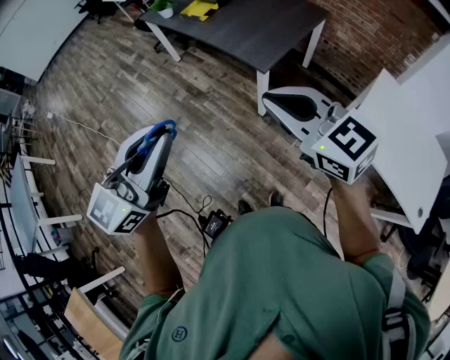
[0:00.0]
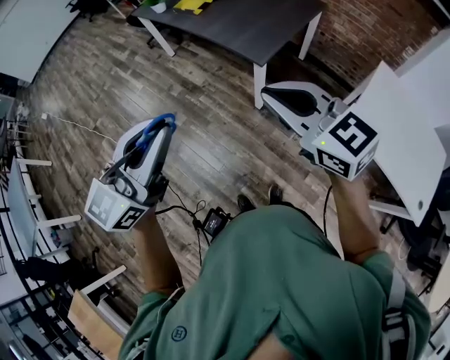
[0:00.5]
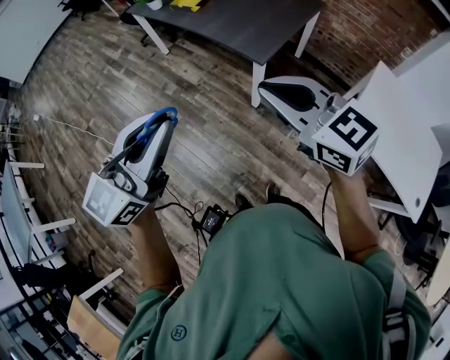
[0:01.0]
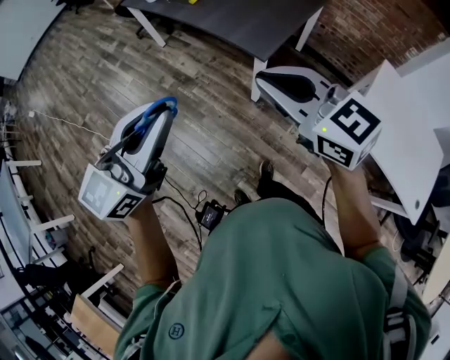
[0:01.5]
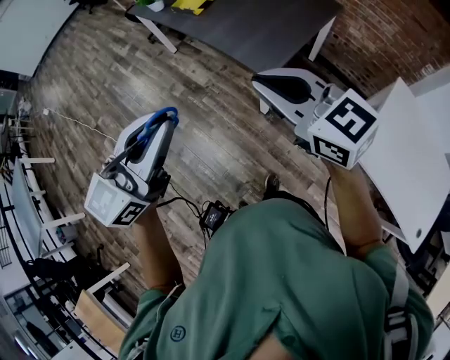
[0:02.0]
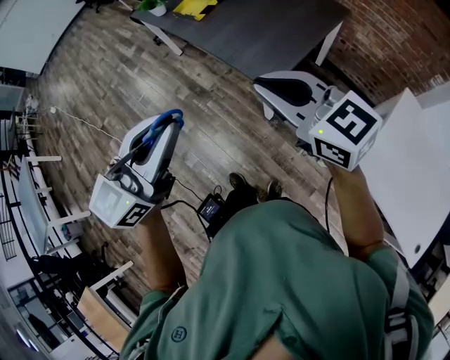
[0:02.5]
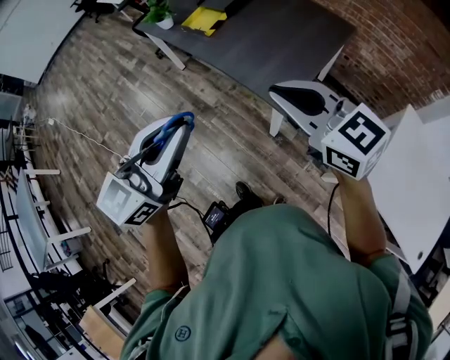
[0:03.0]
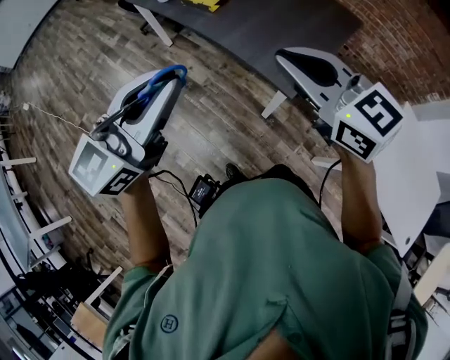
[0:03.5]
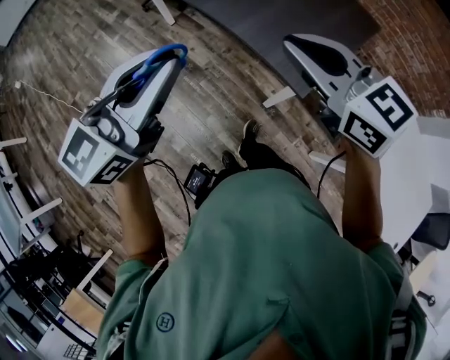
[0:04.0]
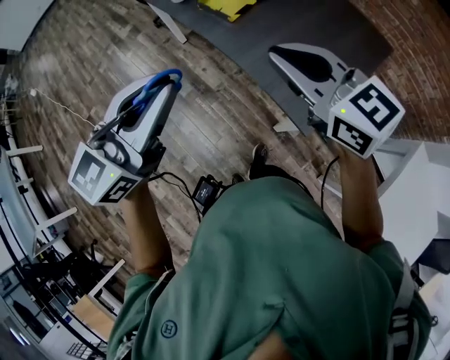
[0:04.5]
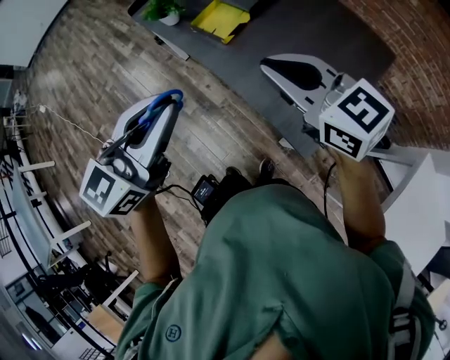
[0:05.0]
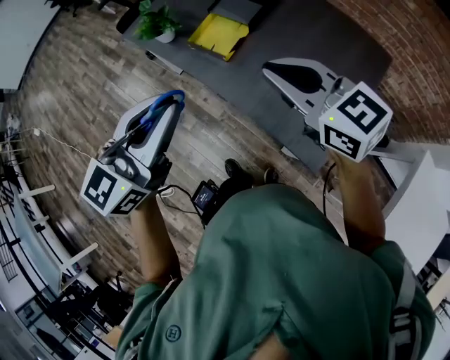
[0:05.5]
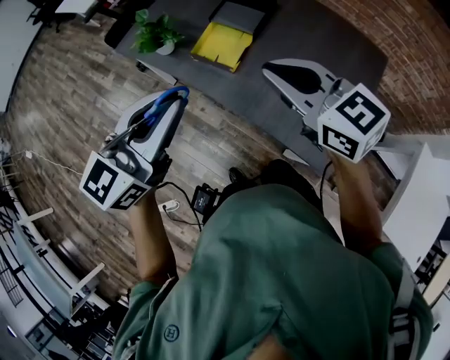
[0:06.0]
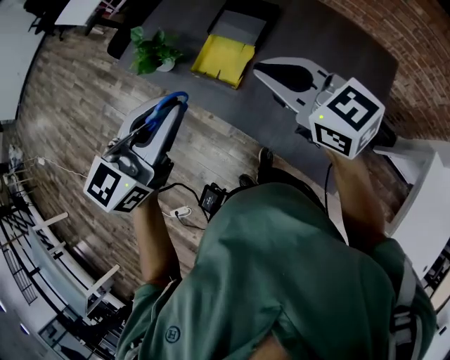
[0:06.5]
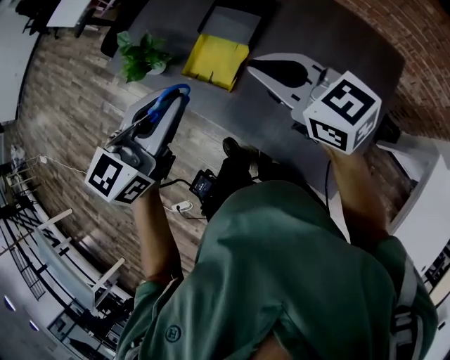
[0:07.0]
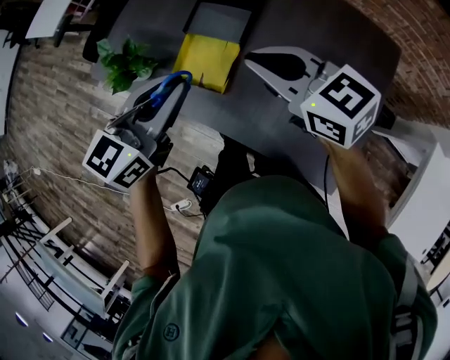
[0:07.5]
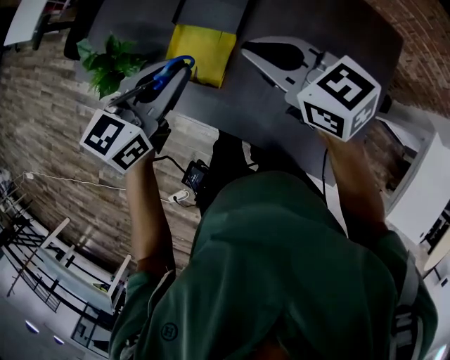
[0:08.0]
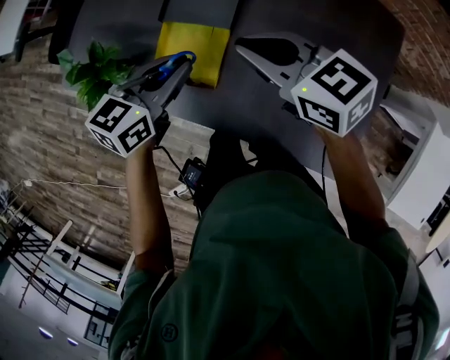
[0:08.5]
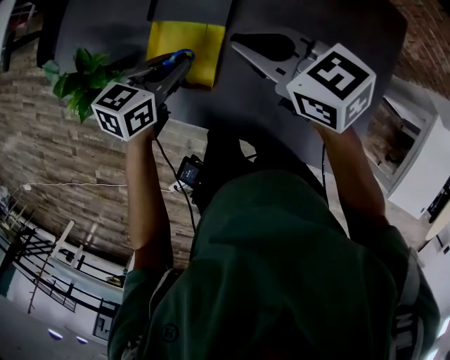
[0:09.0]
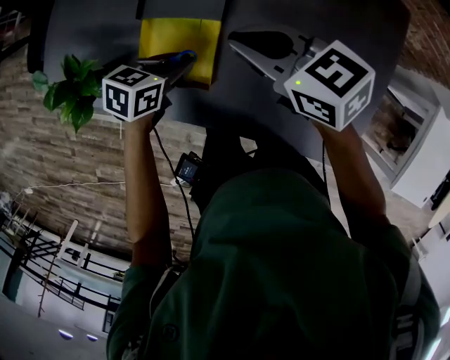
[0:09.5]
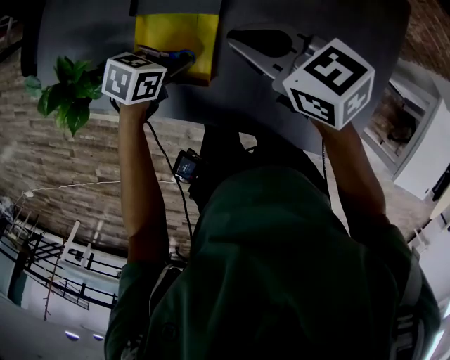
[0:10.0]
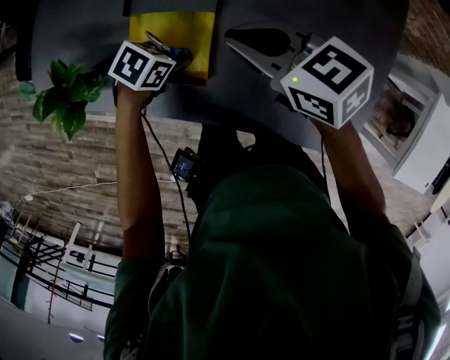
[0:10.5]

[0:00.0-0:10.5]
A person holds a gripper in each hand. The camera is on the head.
0:00.0 to 0:02.0: The grippers both shift forward by roughly 15 cm.
0:02.0 to 0:04.0: Both grippers travel together forward and to the left, approximately 25 cm.
0:04.0 to 0:06.5: Both grippers move forward, about 40 cm.
0:06.5 to 0:08.5: The left gripper is displaced downward and forward by approximately 30 cm, and swivels about 30 degrees. Meanwhile the right gripper is displaced forward and downward by some 20 cm.
0:08.5 to 0:10.5: The left gripper heads downward, covering some 20 cm, and tilts its fingers some 30 degrees downward. The right gripper goes roughly 10 cm downward.

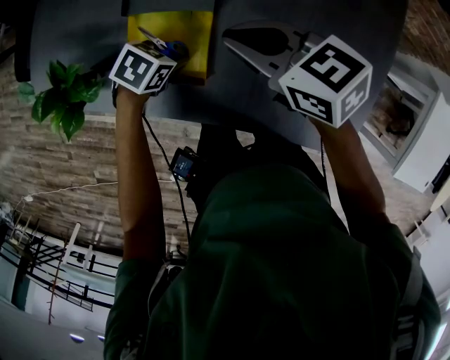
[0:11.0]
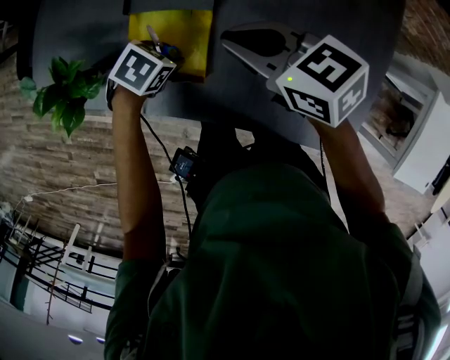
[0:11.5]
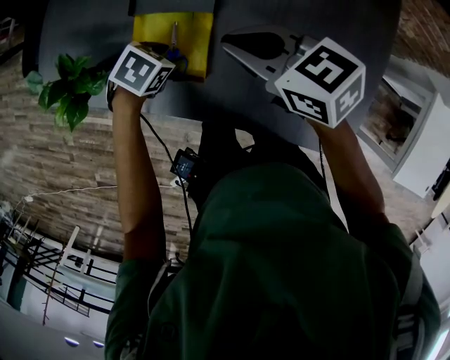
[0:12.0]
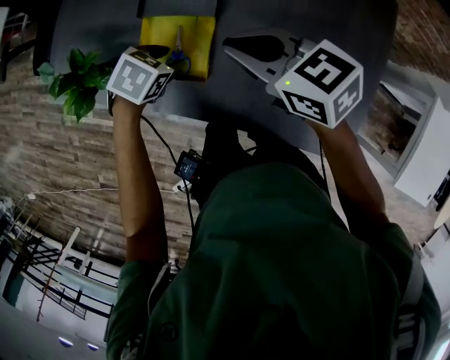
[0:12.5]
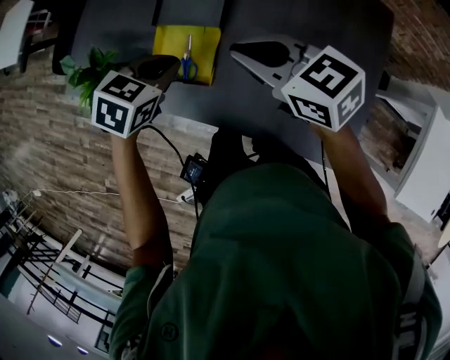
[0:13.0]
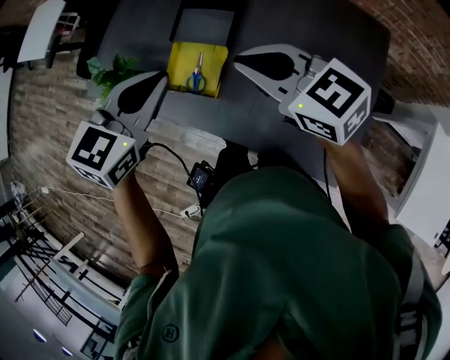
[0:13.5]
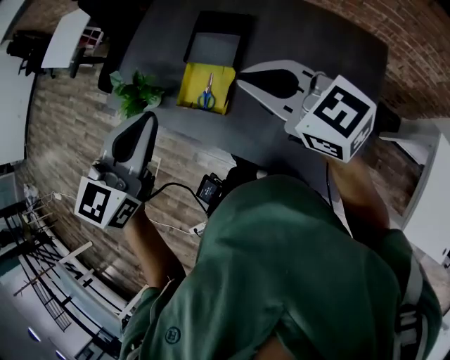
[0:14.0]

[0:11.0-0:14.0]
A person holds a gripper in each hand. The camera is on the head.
0:11.0 to 0:12.5: The right gripper moves about 5 cm. Meanwhile the left gripper heads upward, covering approximately 5 cm.
0:12.5 to 0:14.0: The right gripper goes about 20 cm upward, and swivels approximately 20 degrees, while the left gripper moves upward, about 35 cm, tilts its fingers about 50 degrees upward, and closes up.

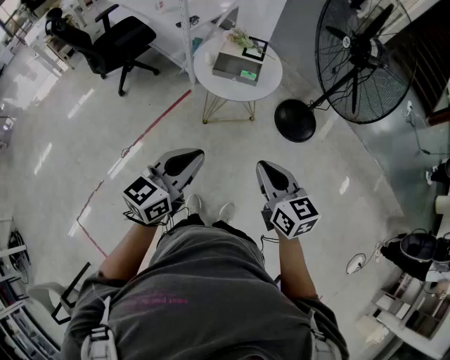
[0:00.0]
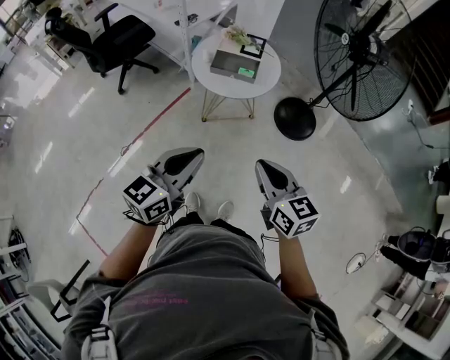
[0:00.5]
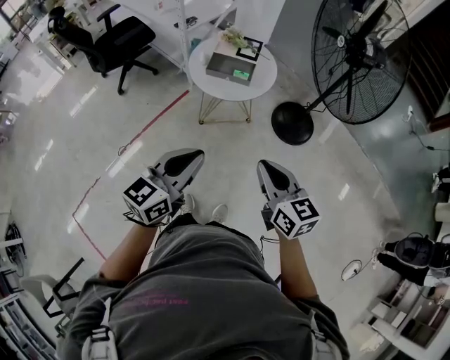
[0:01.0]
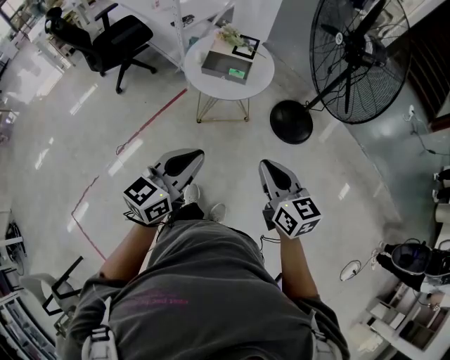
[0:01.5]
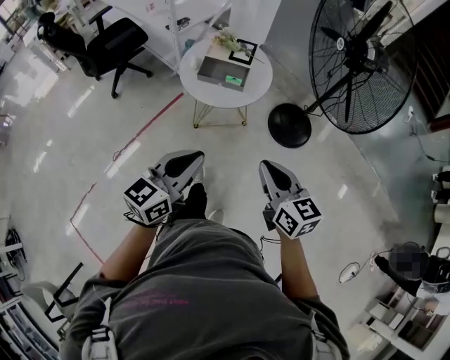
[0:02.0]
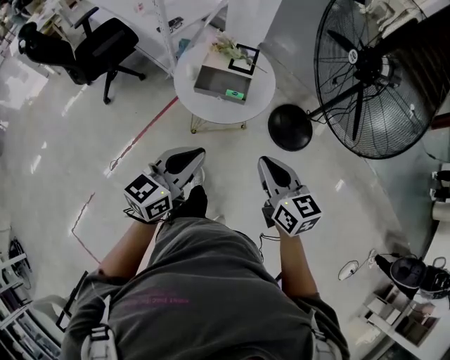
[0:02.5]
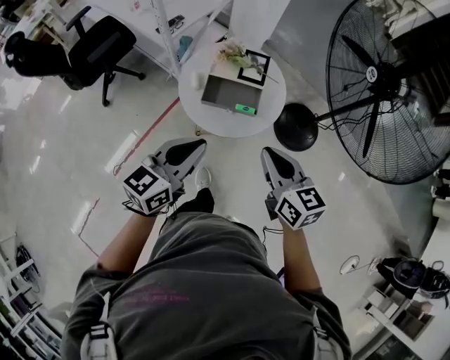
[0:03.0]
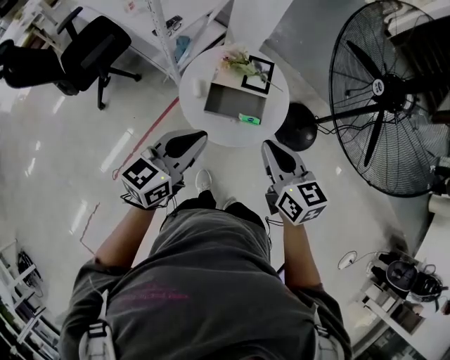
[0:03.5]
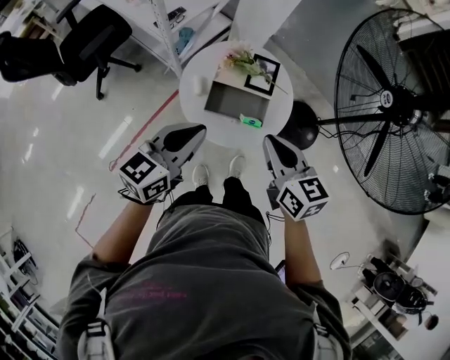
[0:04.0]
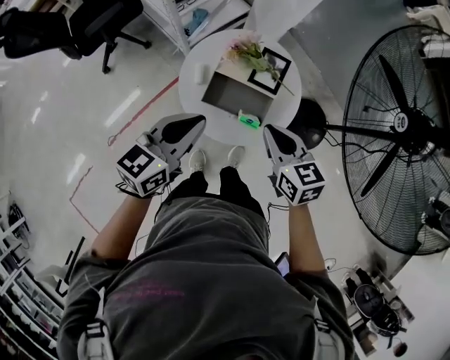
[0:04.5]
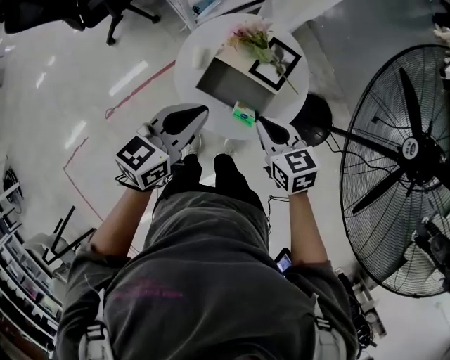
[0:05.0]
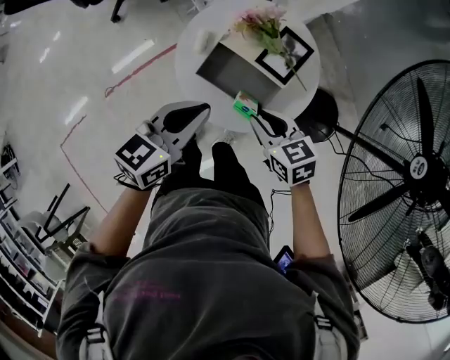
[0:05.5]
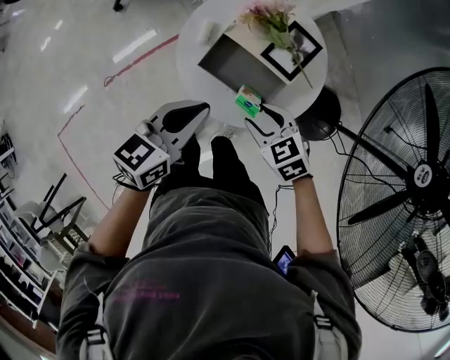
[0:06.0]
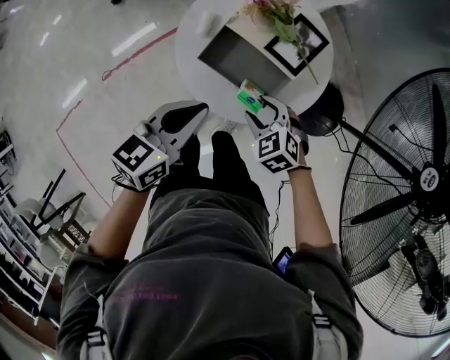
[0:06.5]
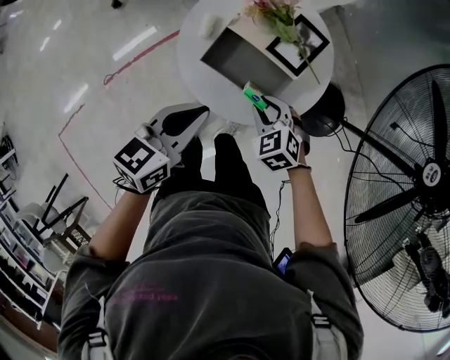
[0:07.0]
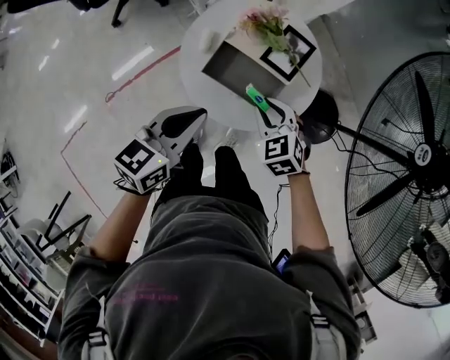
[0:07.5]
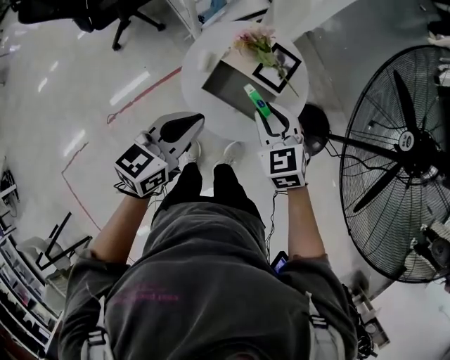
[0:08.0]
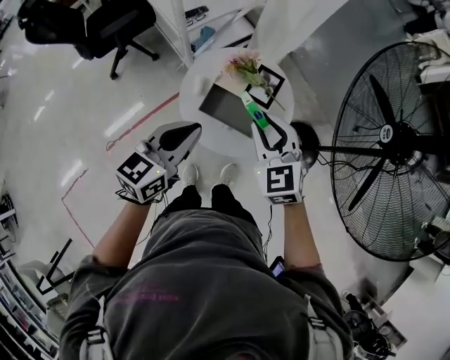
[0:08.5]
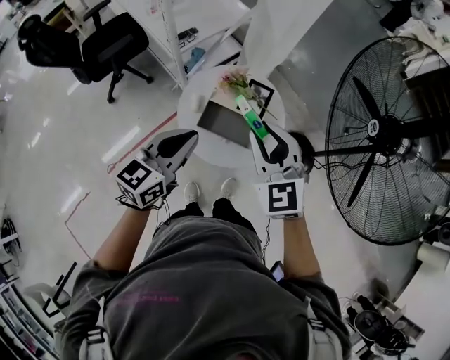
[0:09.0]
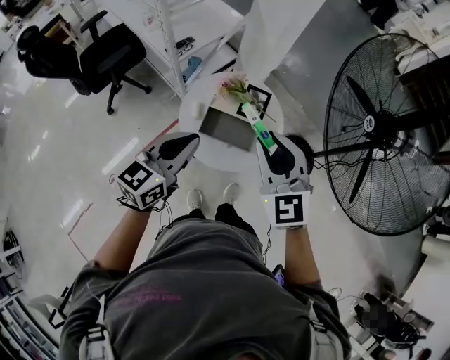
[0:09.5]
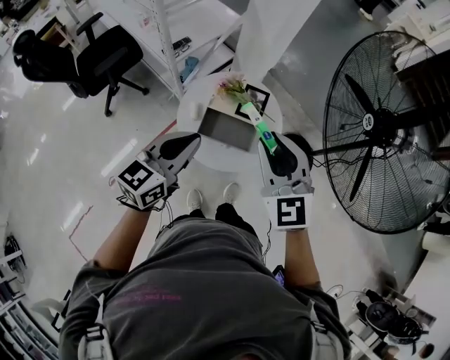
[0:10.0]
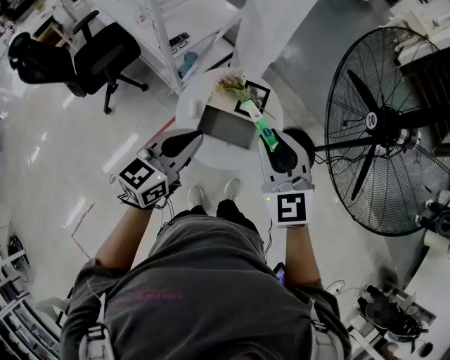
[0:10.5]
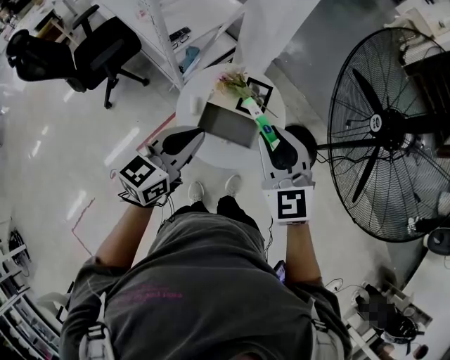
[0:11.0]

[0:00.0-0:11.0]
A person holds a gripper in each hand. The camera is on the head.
0:00.0 to 0:02.0: The two grippers go approximately 10 cm to the right and forward.
0:02.0 to 0:03.5: The grippers both shift forward and to the left by about 35 cm.
0:03.5 to 0:05.5: The right gripper shifts some 20 cm downward, and rotates roughly 40 degrees. Meanwhile the left gripper shifts approximately 15 cm downward, and changes its angle by roughly 20 degrees.
0:05.5 to 0:07.5: The right gripper reaches approximately 10 cm downward, then returns, turns by approximately 30 degrees, and opens, then closes again.
0:07.5 to 0:09.0: The left gripper shifts about 15 cm upward, while the right gripper goes approximately 30 cm upward, and turns by roughly 30 degrees.
0:09.0 to 0:11.0: The grippers stay close to where they were, moving slightly.

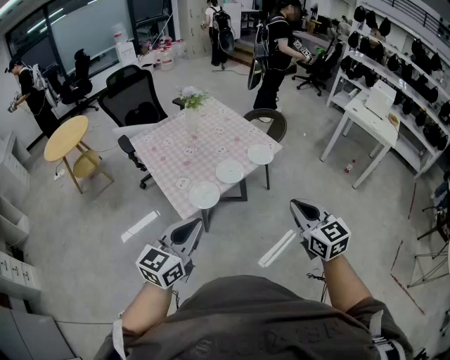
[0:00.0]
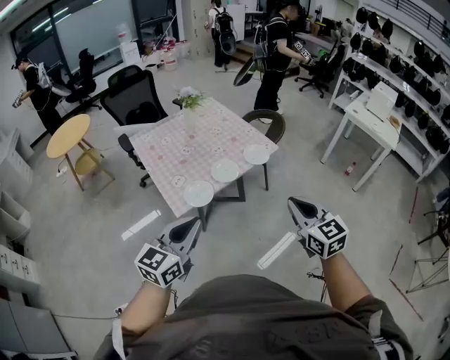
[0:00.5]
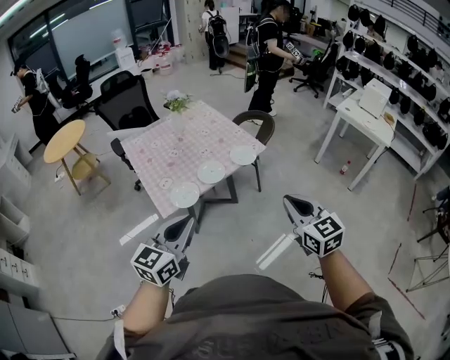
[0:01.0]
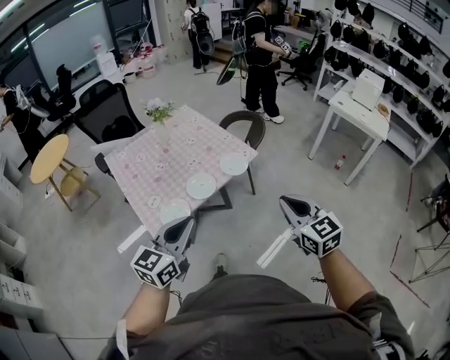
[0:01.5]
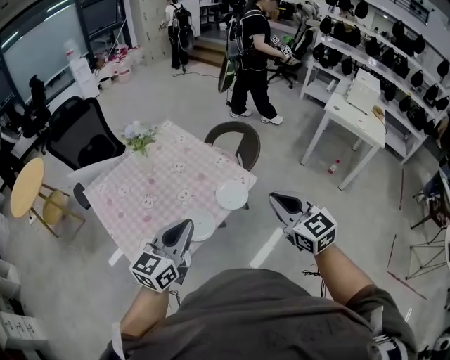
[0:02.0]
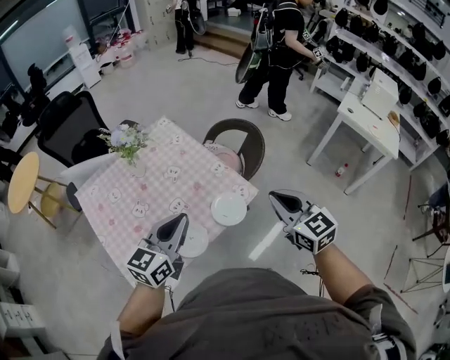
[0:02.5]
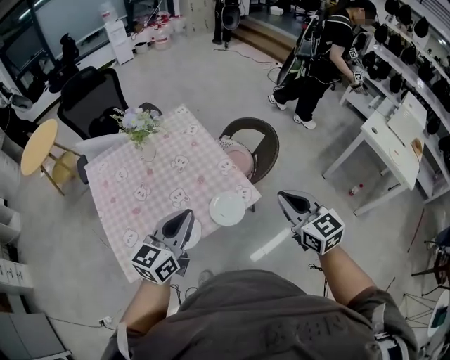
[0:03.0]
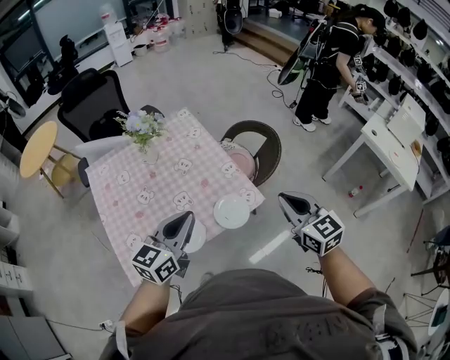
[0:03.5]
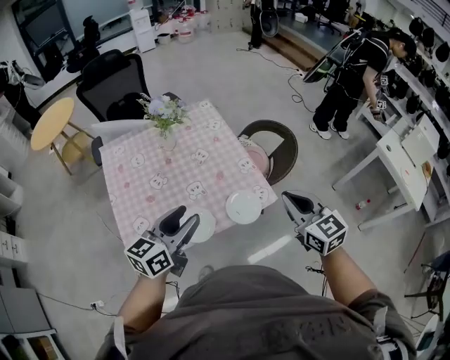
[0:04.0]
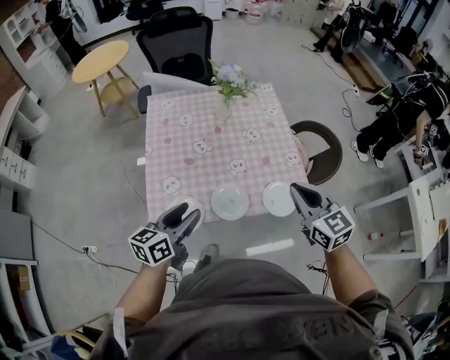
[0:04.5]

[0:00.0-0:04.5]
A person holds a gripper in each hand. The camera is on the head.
0:00.0 to 0:02.0: Both grippers travel together forward, approximately 30 cm.
0:02.0 to 0:04.5: The right gripper shifts by roughly 15 cm, and turns by about 30 degrees. The left gripper goes approximately 10 cm downward, swivels roughly 40 degrees, and opens up.
